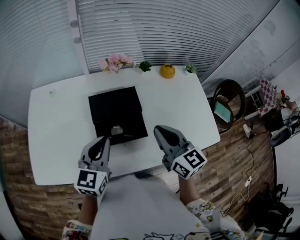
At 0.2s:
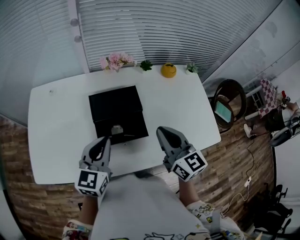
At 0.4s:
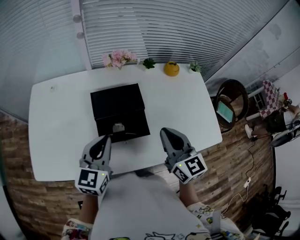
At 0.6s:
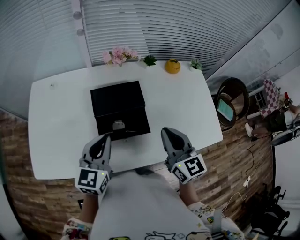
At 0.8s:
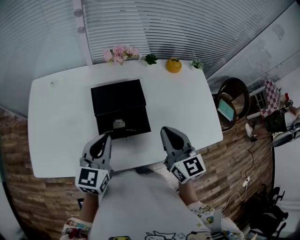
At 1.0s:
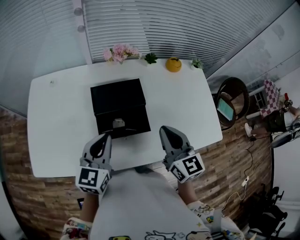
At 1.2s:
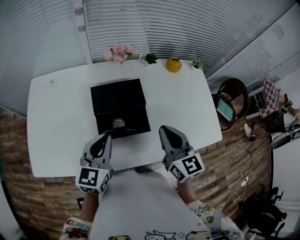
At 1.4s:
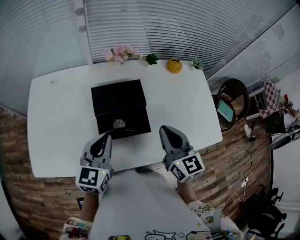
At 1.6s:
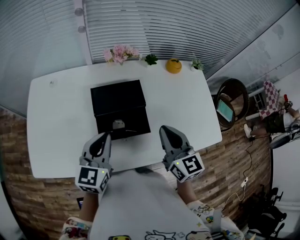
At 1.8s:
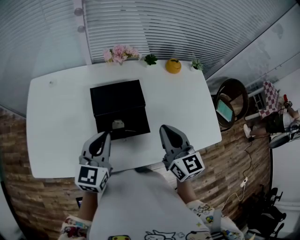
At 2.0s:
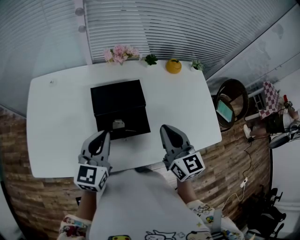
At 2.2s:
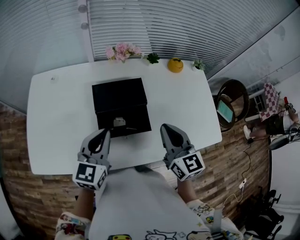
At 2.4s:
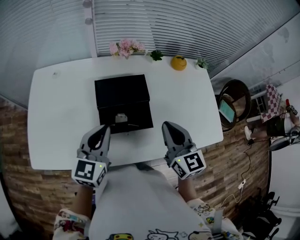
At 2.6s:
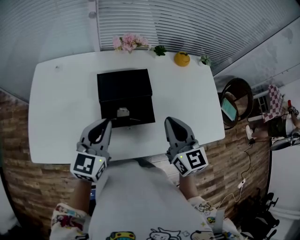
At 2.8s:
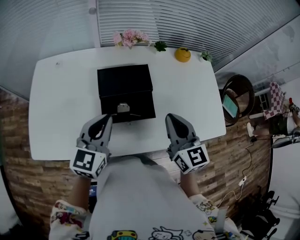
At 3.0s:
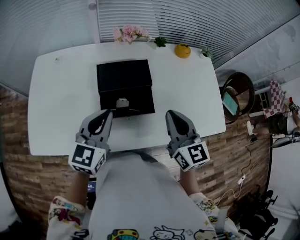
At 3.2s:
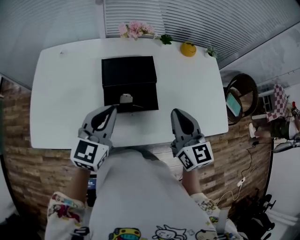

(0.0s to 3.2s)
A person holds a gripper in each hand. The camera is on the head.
0.0s - 3.2s: The grippers stay close to where they were, moving slightly.

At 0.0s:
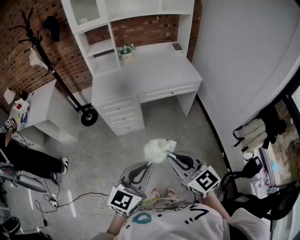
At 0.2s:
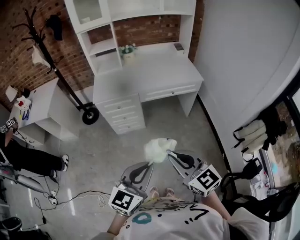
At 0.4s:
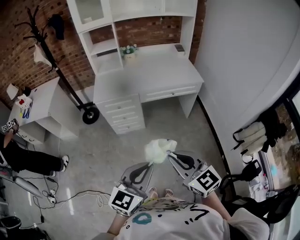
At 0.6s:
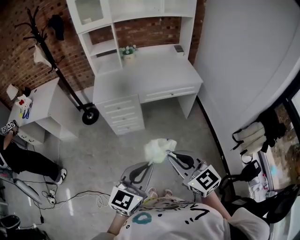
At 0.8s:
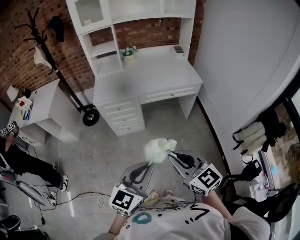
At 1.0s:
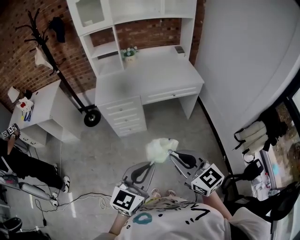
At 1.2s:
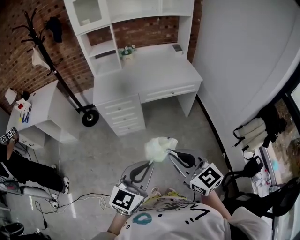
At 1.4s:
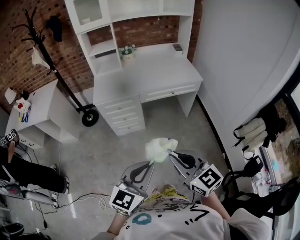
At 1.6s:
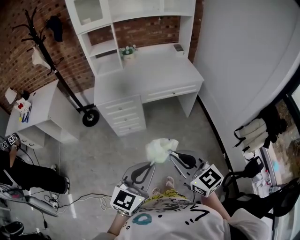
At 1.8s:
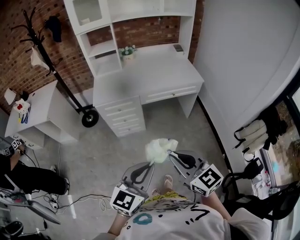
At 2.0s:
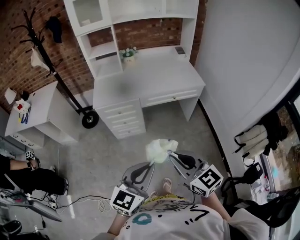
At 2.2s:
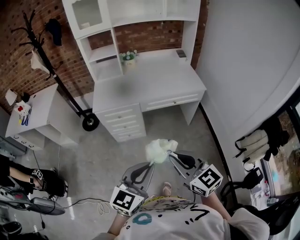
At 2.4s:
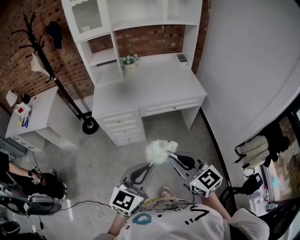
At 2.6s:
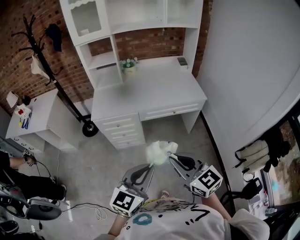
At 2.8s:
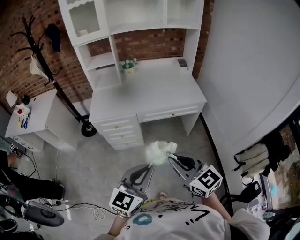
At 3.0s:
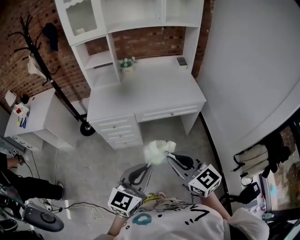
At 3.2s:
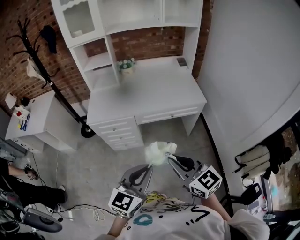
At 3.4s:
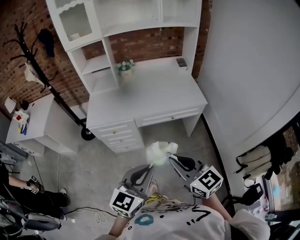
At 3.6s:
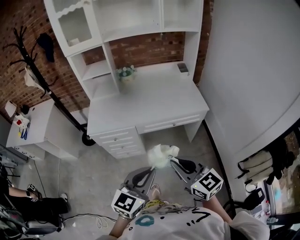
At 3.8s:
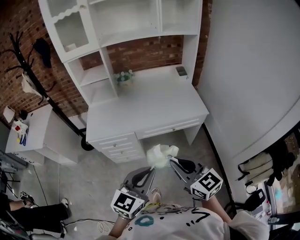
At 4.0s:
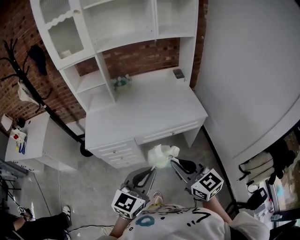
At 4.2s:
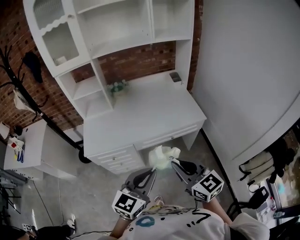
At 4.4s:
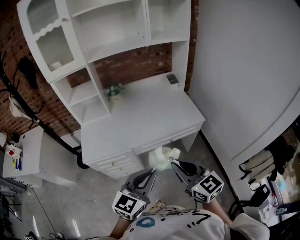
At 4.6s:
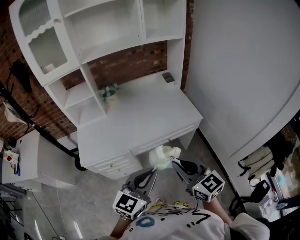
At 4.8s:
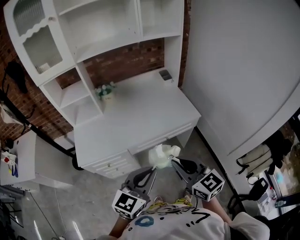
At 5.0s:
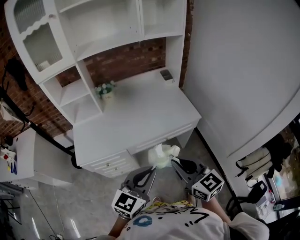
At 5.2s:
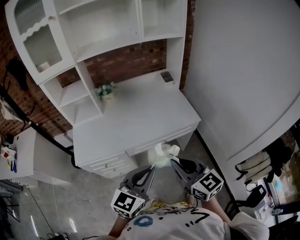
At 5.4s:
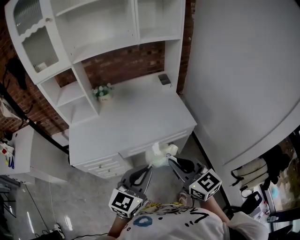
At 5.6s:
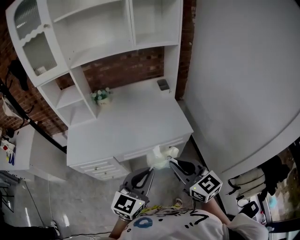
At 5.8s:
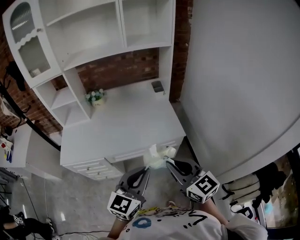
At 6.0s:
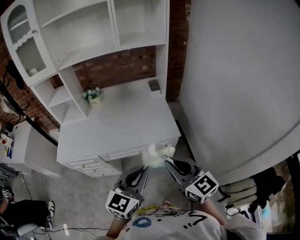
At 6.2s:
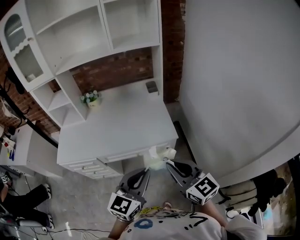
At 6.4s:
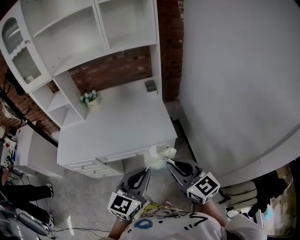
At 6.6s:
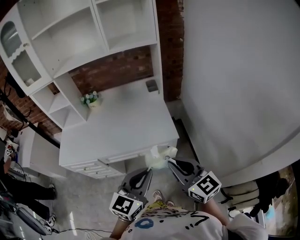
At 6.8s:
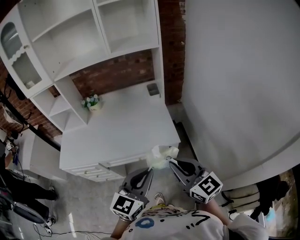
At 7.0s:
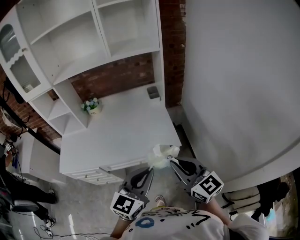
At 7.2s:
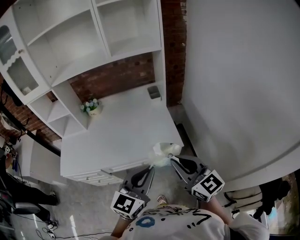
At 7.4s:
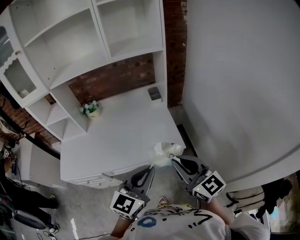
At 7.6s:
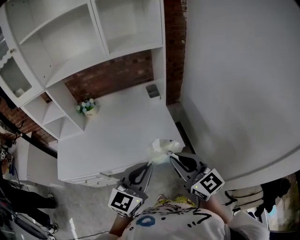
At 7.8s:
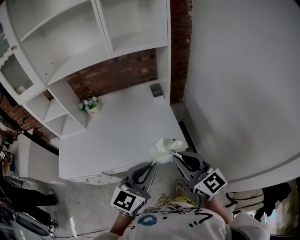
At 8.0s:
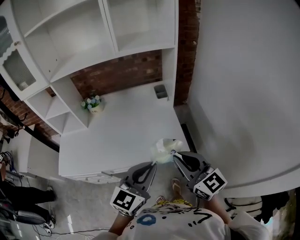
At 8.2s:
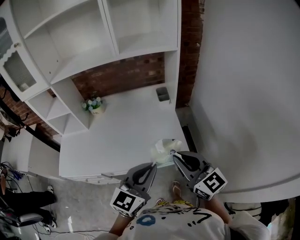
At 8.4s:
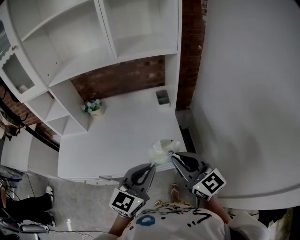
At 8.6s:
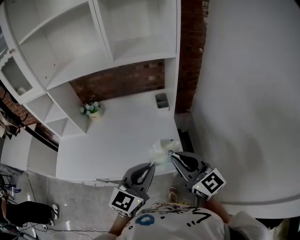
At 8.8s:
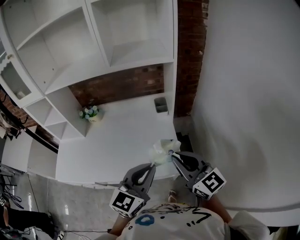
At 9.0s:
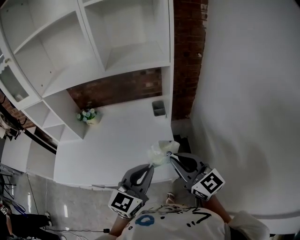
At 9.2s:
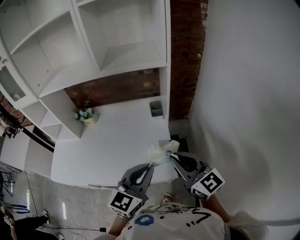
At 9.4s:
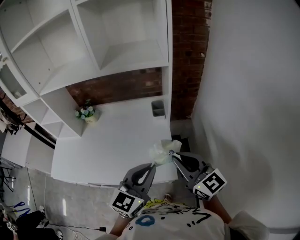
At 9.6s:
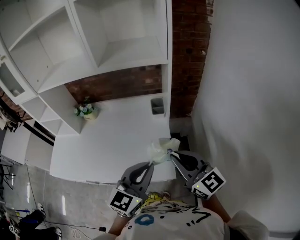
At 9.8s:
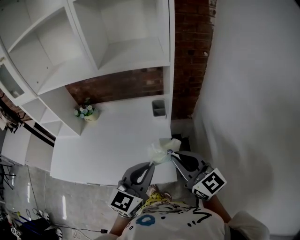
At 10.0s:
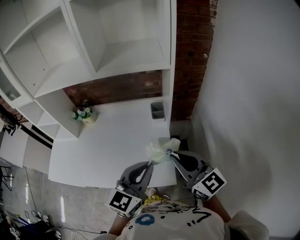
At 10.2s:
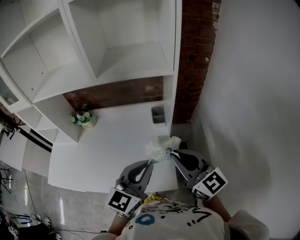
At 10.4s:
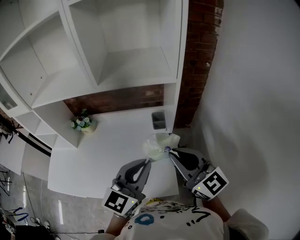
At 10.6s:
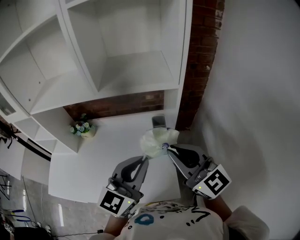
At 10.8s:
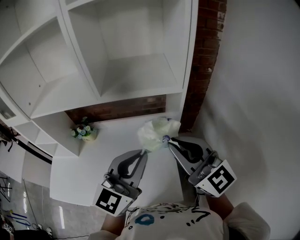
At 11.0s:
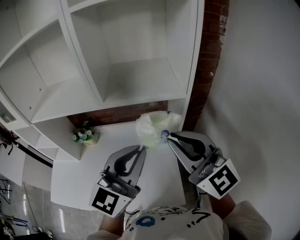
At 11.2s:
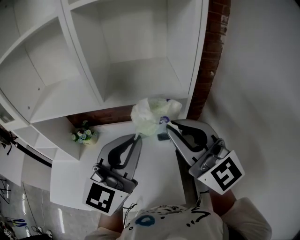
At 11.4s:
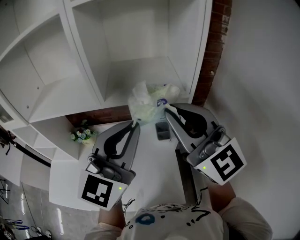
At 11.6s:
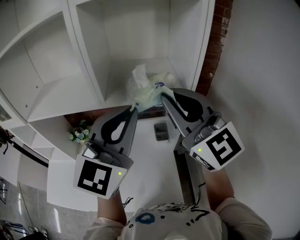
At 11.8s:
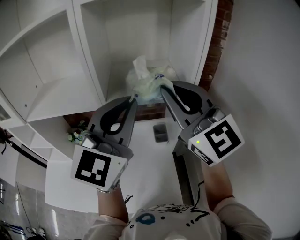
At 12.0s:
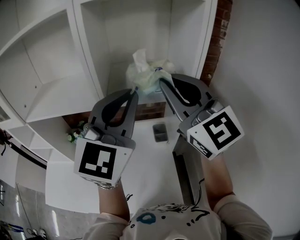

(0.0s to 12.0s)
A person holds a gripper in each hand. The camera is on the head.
0.0s - 1.6s: The grippers make only small movements.
1.6s - 3.0s: The grippers both shift forward and to the right by approximately 20 cm.
3.0s - 4.4s: The grippers both shift forward by approximately 20 cm.
4.4s - 6.0s: The two grippers go approximately 25 cm to the right and forward.
6.0s - 7.6s: The two grippers go roughly 10 cm forward.
7.6s - 9.0s: Both grippers move forward and to the right, some 15 cm.
9.0s - 10.4s: The grippers both shift forward by roughly 10 cm.
10.4s - 12.0s: The grippers both shift upward and forward by roughly 25 cm. The left gripper turns by about 30 degrees. Meanwhile the right gripper changes its angle by about 30 degrees.

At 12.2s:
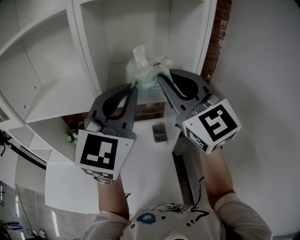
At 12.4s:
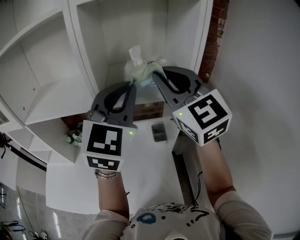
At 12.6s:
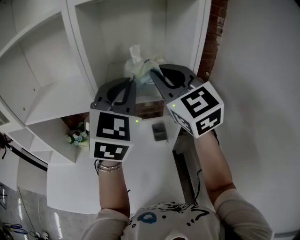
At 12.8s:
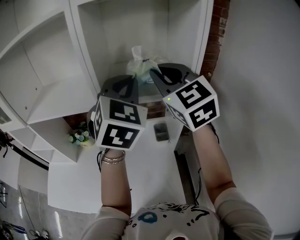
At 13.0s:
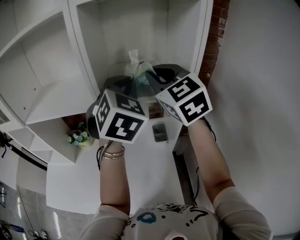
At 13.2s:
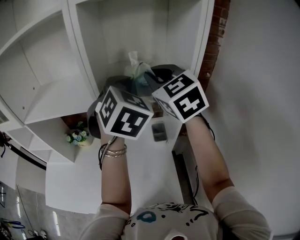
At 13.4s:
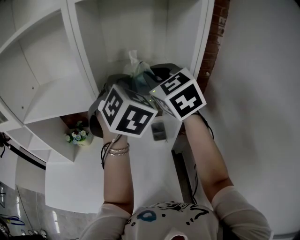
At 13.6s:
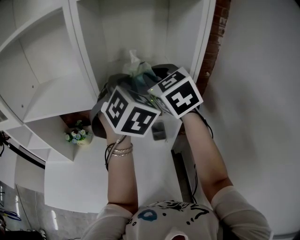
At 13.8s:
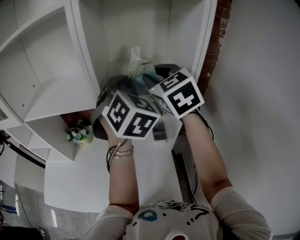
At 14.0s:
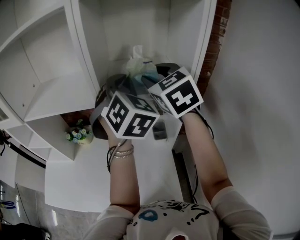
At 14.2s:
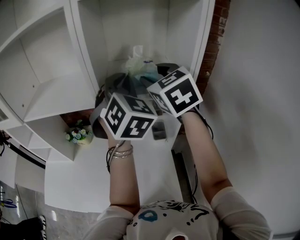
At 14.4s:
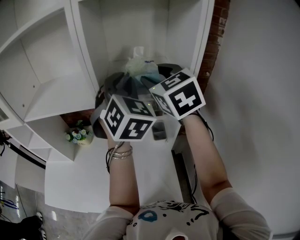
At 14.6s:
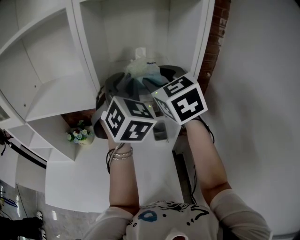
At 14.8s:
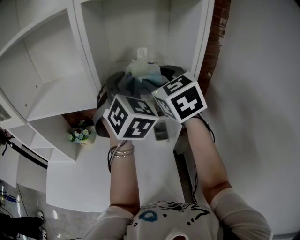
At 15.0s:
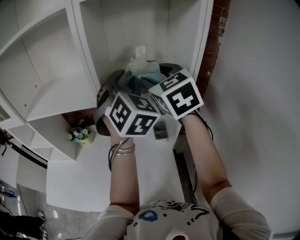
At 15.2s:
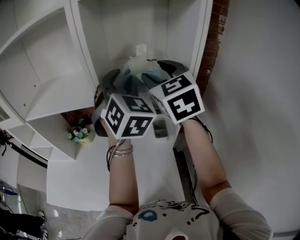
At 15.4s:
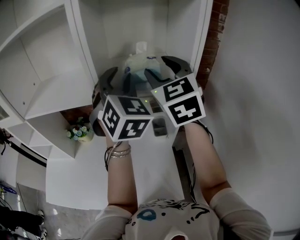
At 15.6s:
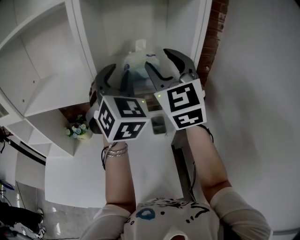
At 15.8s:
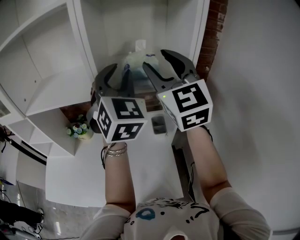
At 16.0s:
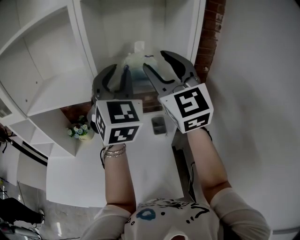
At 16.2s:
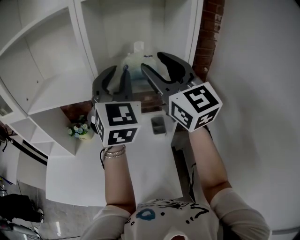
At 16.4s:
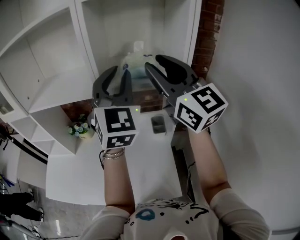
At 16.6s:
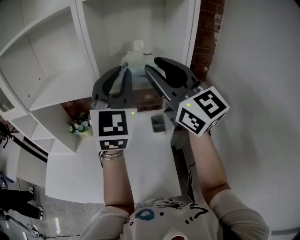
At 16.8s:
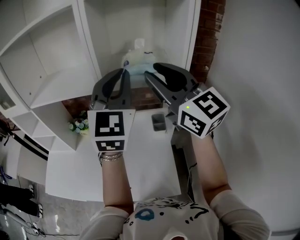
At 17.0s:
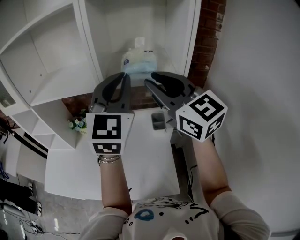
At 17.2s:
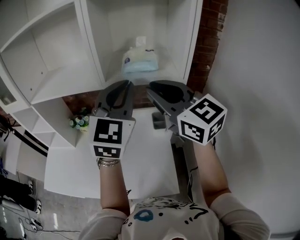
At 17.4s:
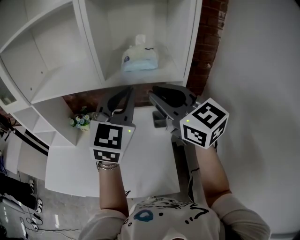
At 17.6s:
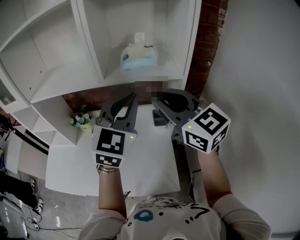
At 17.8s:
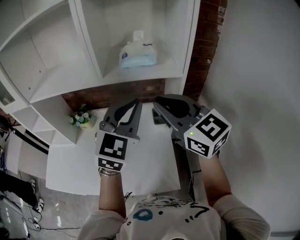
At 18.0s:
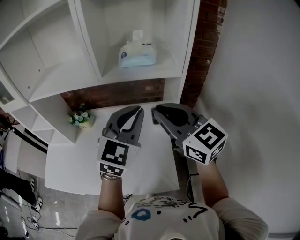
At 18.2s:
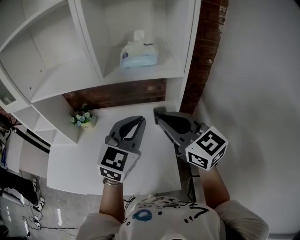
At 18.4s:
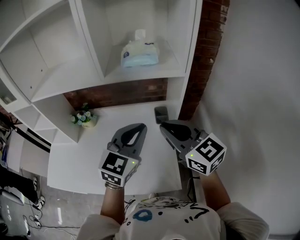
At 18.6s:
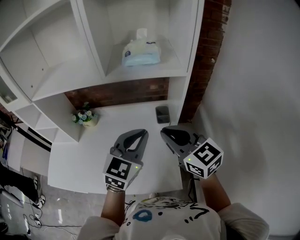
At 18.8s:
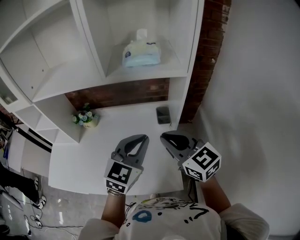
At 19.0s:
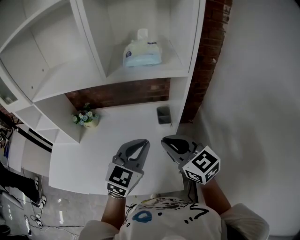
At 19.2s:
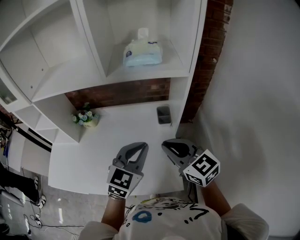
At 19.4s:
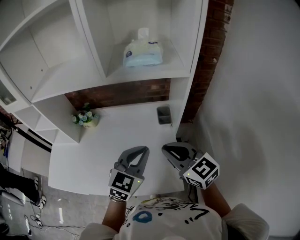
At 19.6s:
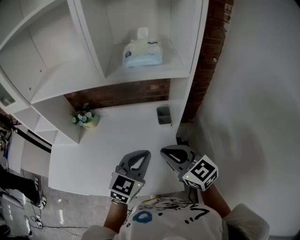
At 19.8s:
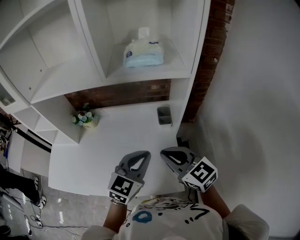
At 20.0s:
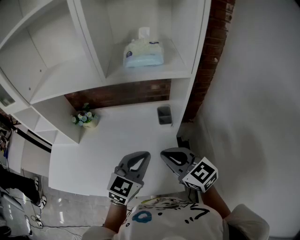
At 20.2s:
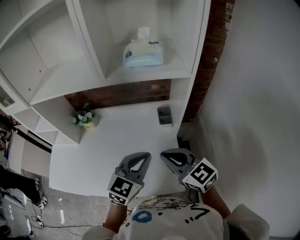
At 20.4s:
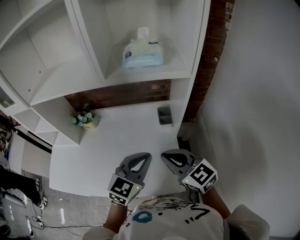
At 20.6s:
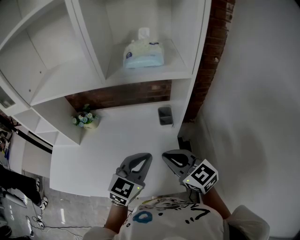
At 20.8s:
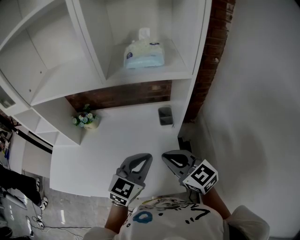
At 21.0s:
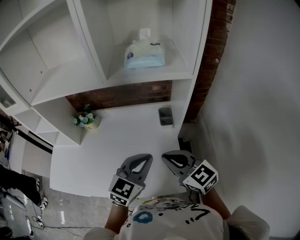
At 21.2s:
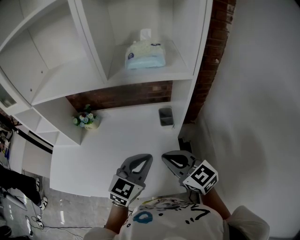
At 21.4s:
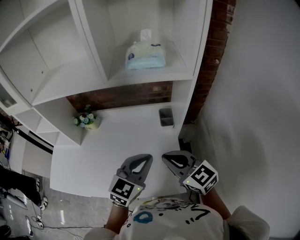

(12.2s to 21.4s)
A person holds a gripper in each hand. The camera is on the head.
12.2s - 13.8s: The left gripper travels forward by roughly 10 cm, and turns by roughly 40 degrees; the right gripper heads forward and downward, covering roughly 15 cm, and rotates some 30 degrees.
13.8s - 15.2s: The left gripper opens up. Meanwhile the right gripper opens its fingers.
15.2s - 16.8s: The grippers both shift backward by about 10 cm. The right gripper rotates approximately 40 degrees, while the left gripper swivels about 30 degrees, and closes up.
16.8s - 18.4s: Both grippers travel together downward and backward, some 20 cm. The right gripper rotates approximately 20 degrees, and closes its fingers, while the left gripper changes its angle by about 30 degrees.
18.4s - 19.8s: The two grippers go roughly 10 cm downward.
19.8s - 21.4s: Both grippers stay about where they are.
